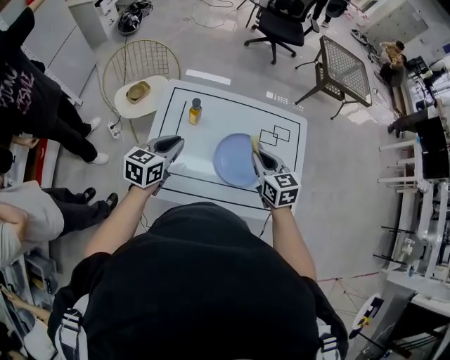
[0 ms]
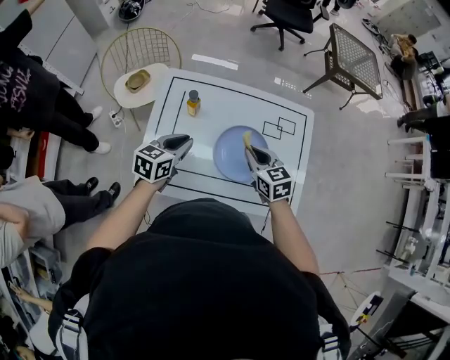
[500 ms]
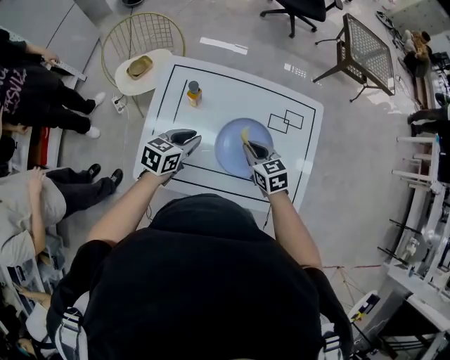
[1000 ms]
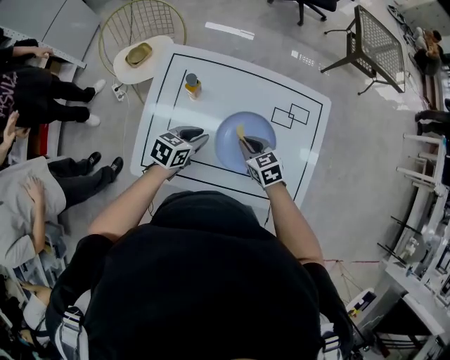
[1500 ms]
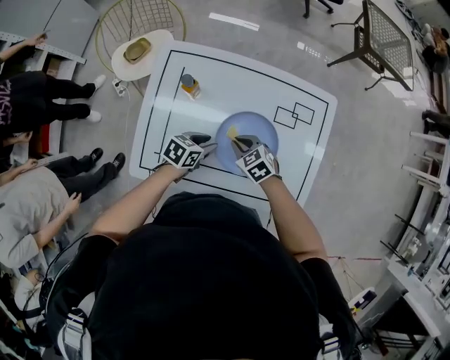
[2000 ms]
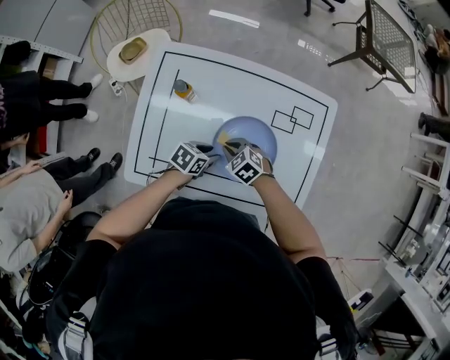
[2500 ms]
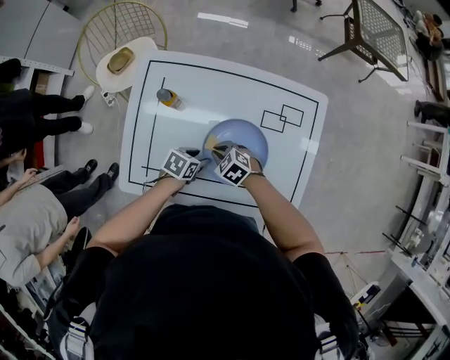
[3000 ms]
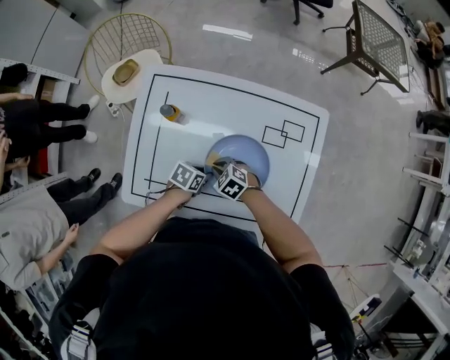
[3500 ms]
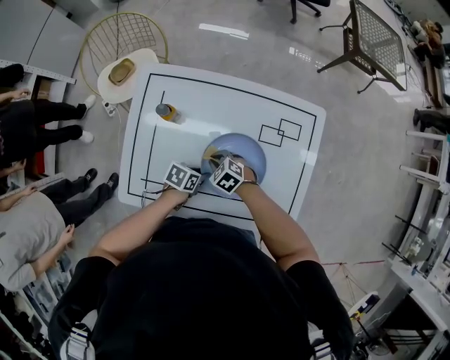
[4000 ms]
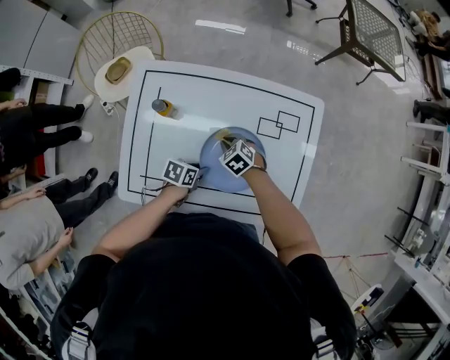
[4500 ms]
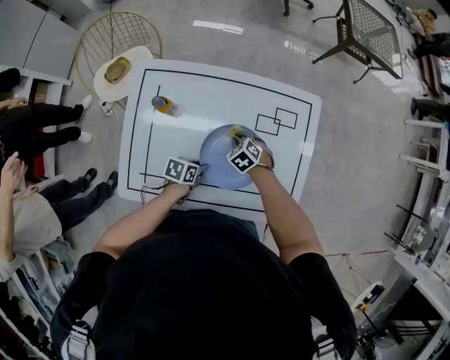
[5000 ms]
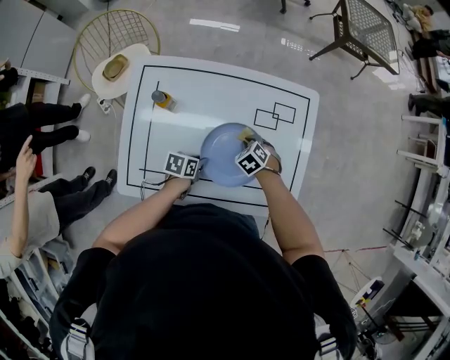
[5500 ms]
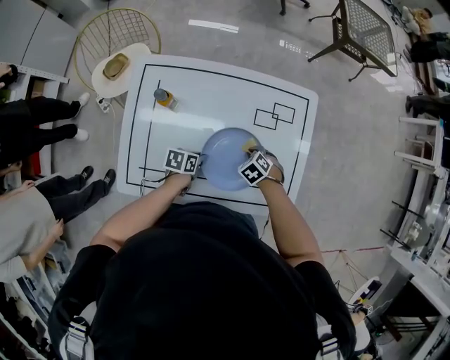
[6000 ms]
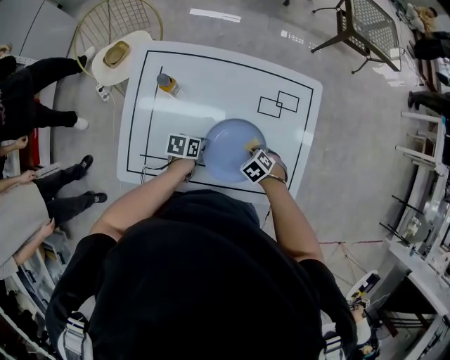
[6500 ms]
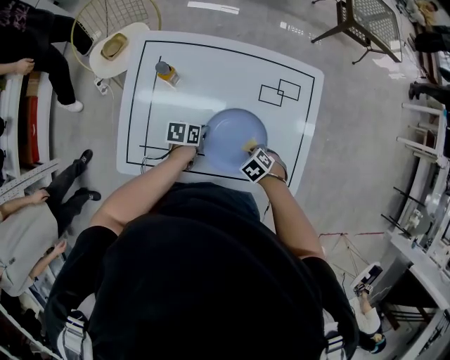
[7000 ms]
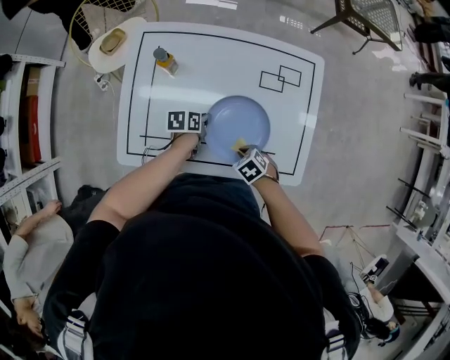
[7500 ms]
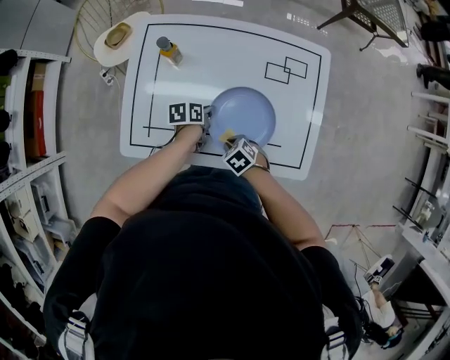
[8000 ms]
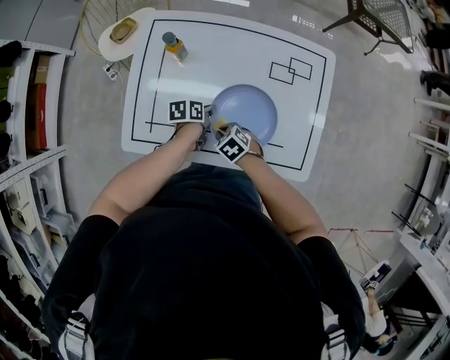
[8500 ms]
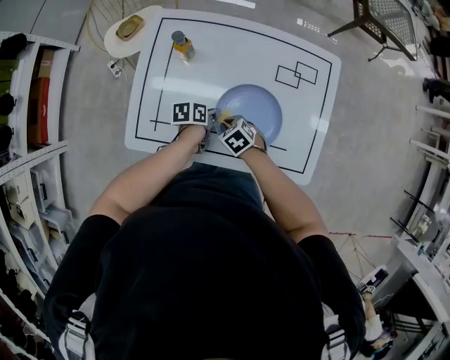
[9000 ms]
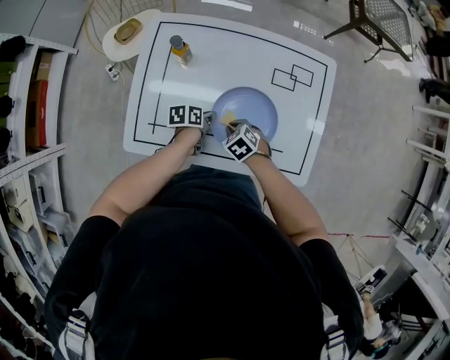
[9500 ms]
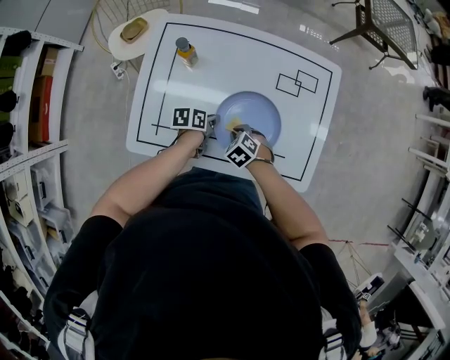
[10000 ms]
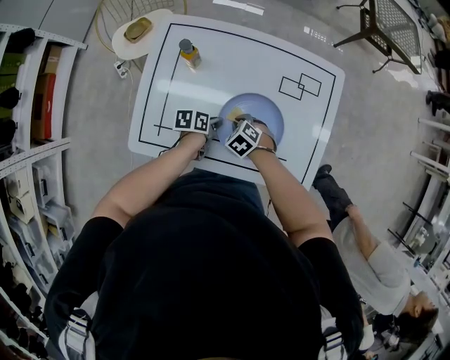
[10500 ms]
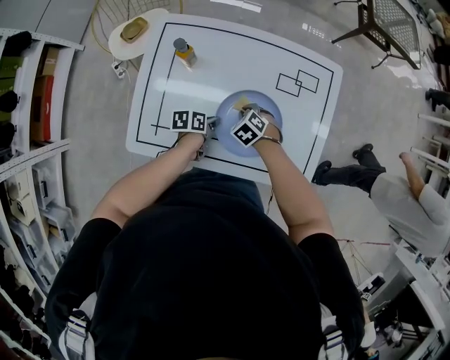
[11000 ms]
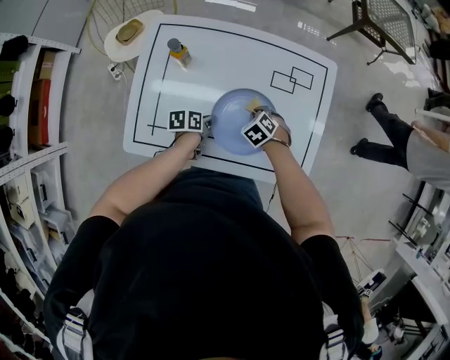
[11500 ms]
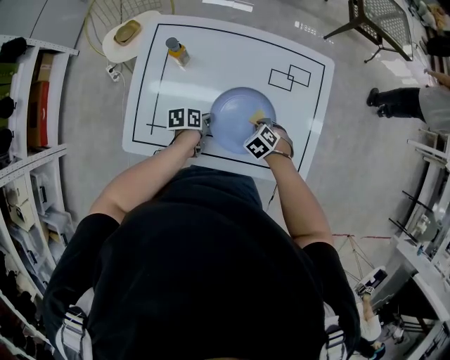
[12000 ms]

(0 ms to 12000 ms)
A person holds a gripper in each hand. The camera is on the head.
0 ms - 2000 ms: The two grippers go about 20 cm downward. The right gripper changes its angle by some 40 degrees. Meanwhile the left gripper changes its angle by some 30 degrees, and opens.
2000 ms - 4000 ms: The two grippers go some 5 cm downward.
4000 ms - 6000 ms: The right gripper moves about 15 cm, and turns by about 30 degrees.
6000 ms - 8000 ms: The right gripper ends up about 20 cm from where it was.
8000 ms - 10000 ms: The right gripper ends up about 5 cm from where it was.
10000 ms - 12000 ms: The right gripper shifts by some 10 cm.

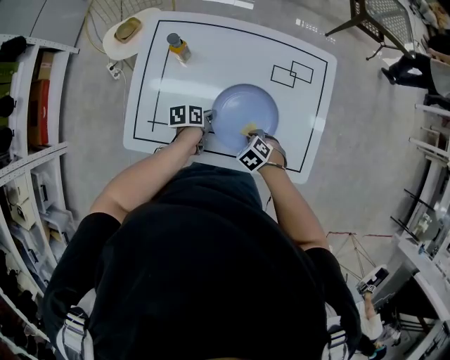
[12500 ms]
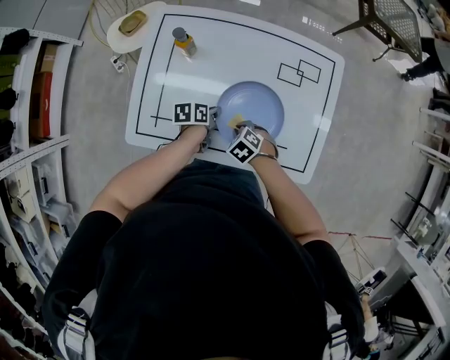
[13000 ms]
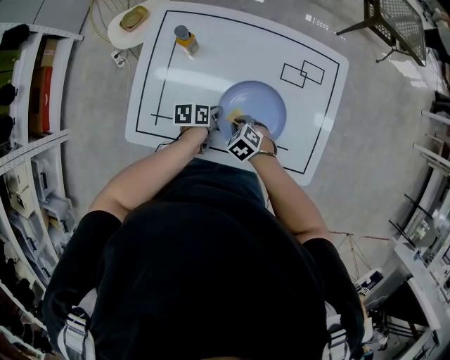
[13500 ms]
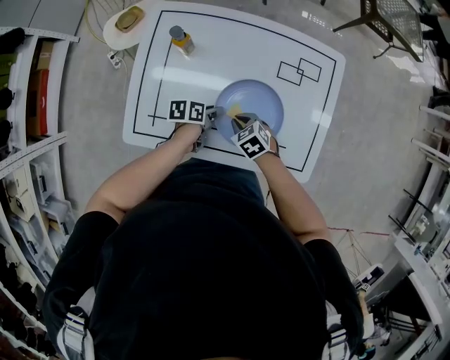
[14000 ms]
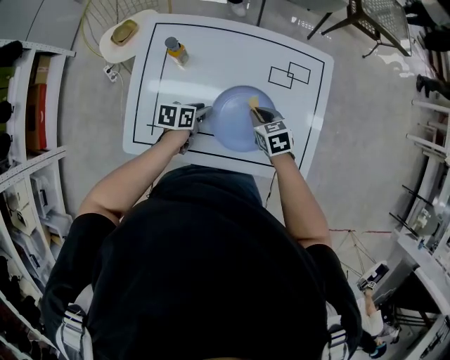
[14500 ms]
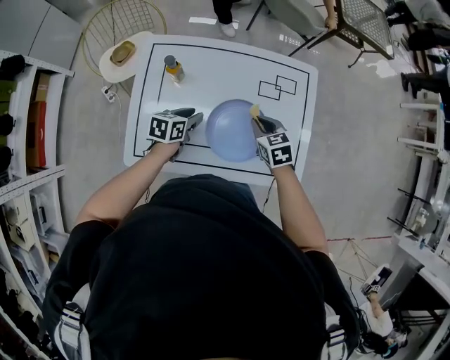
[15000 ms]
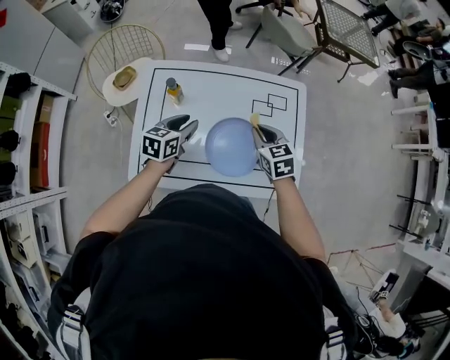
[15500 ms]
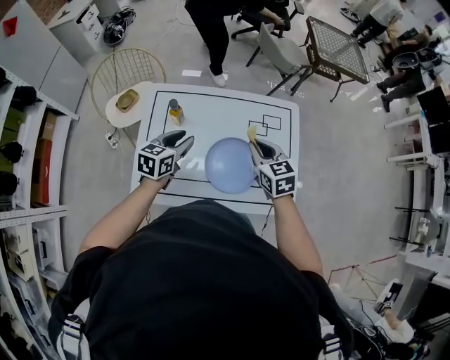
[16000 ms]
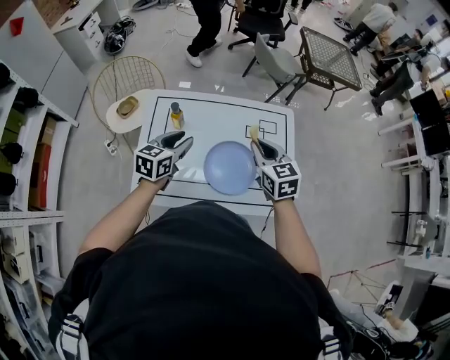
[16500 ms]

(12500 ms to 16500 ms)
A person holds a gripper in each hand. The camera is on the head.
12500 ms - 14500 ms: The left gripper shifts by roughly 5 cm, and opens, while the right gripper ends up approximately 15 cm from where it was, and rotates approximately 40 degrees.
14500 ms - 16500 ms: The grippers both shift upward by roughly 25 cm. The right gripper changes its angle by approximately 30 degrees; the left gripper changes its angle by roughly 40 degrees.

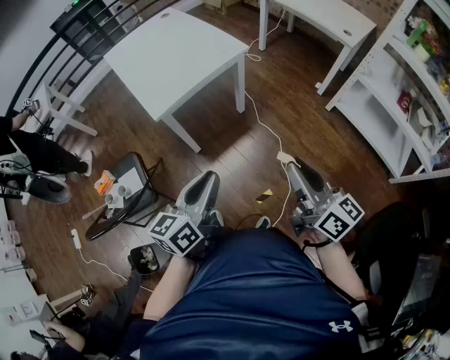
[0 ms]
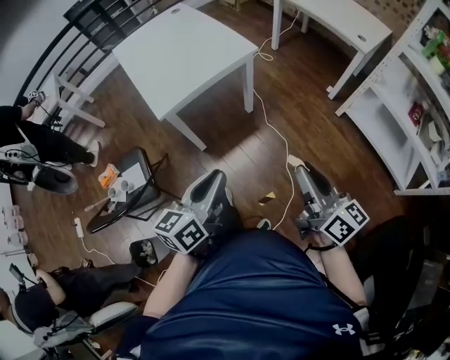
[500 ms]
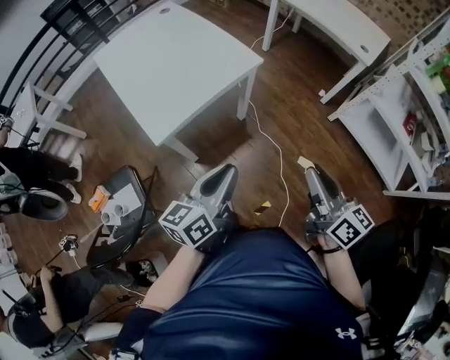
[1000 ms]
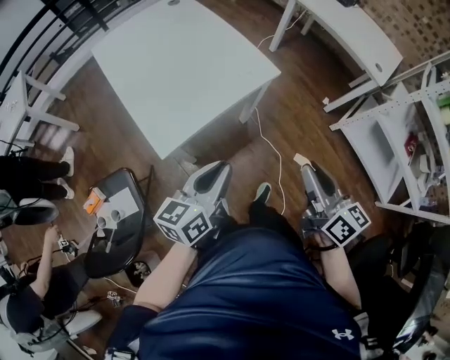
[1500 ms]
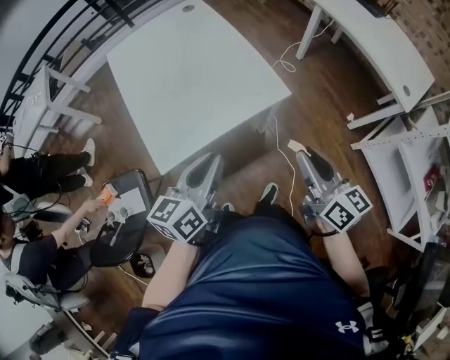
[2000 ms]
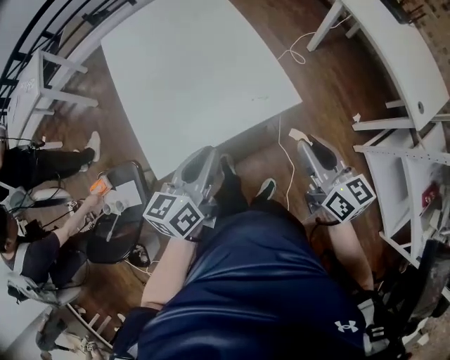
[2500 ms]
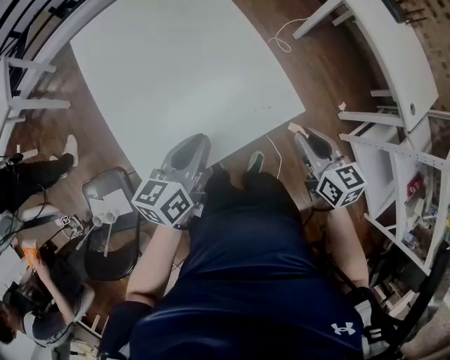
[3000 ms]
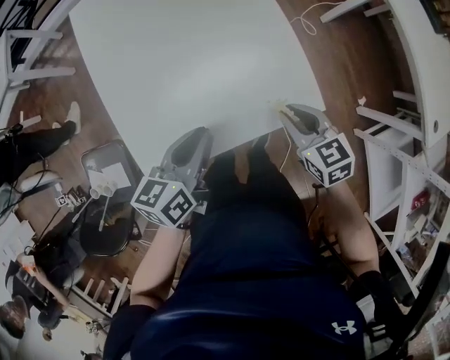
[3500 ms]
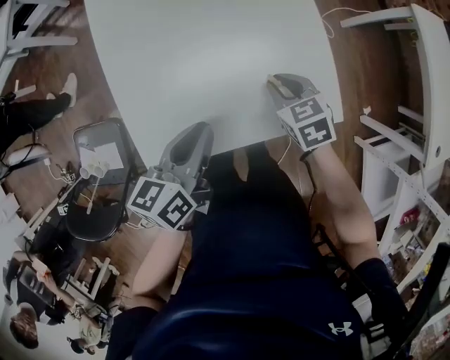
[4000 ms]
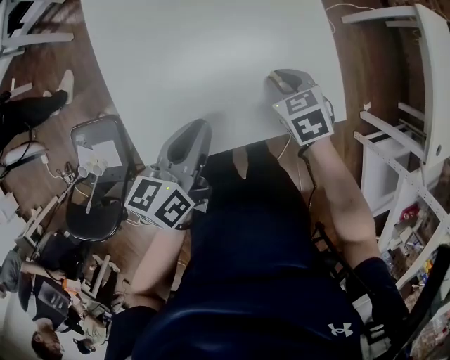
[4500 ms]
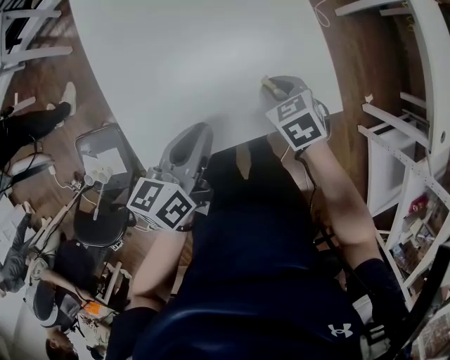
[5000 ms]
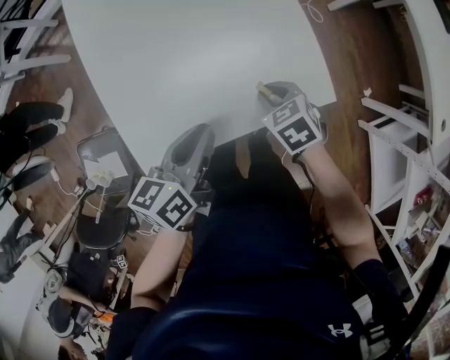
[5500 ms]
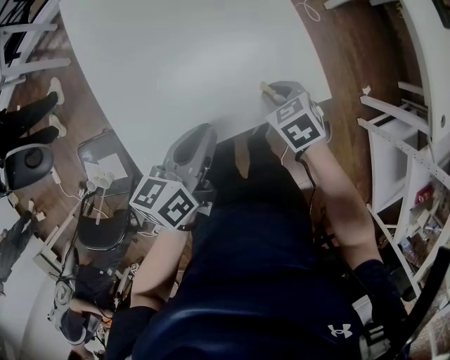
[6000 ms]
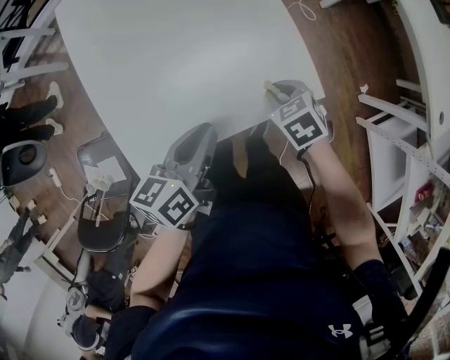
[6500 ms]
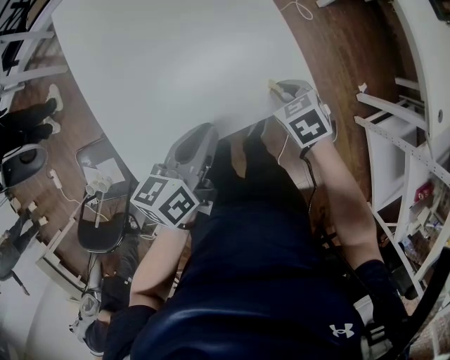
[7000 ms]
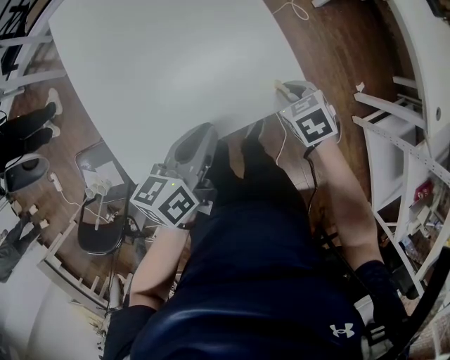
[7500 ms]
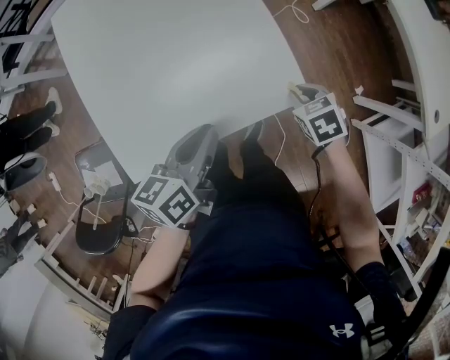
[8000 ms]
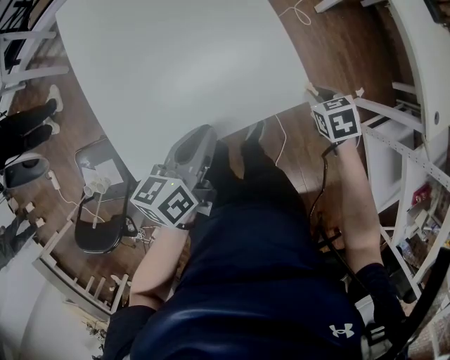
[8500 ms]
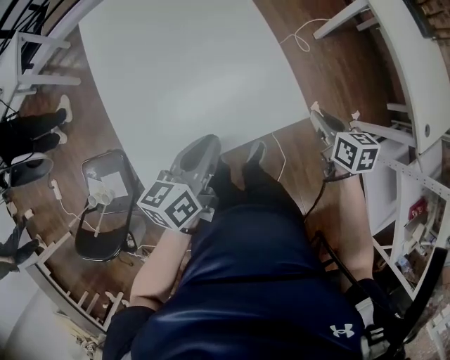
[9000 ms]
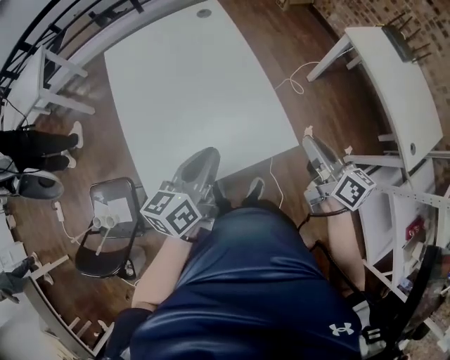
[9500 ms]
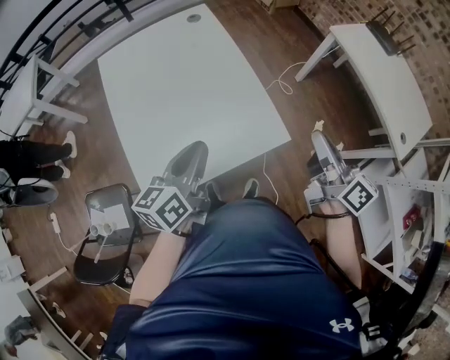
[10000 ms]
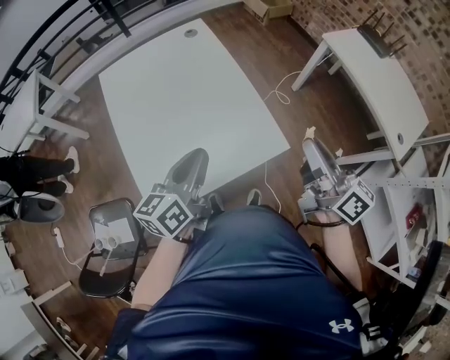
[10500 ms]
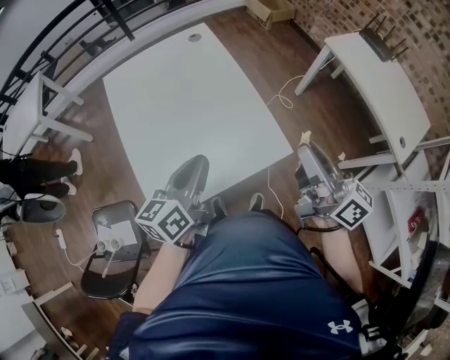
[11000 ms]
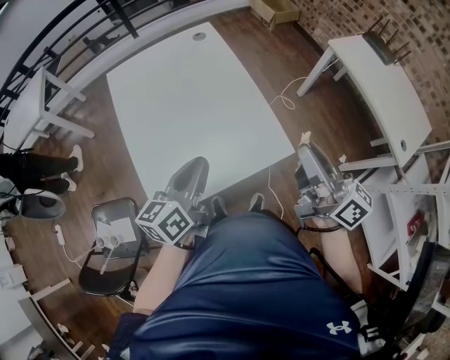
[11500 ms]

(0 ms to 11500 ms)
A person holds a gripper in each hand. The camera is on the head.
0 ms - 2000 ms: The grippers both shift forward by roughly 35 cm.
2000 ms - 4000 ms: The left gripper heads forward, downward and to the left, covering about 25 cm, and rotates about 20 degrees. Meanwhile the right gripper is displaced forward, downward and to the left by about 40 cm, and points its fingers about 50 degrees further downward.
4000 ms - 6000 ms: The right gripper goes roughly 5 cm backward, while the left gripper heads to the right, covering some 5 cm.
6000 ms - 7500 ms: The left gripper is displaced to the right by about 5 cm. Meanwhile the right gripper shifts about 10 cm to the right.
7500 ms - 9500 ms: The left gripper shifts about 10 cm upward; the right gripper is displaced upward by about 25 cm, and points its fingers some 50 degrees further upward.
9500 ms - 11500 ms: The right gripper shifts some 10 cm upward, and turns by roughly 20 degrees.
